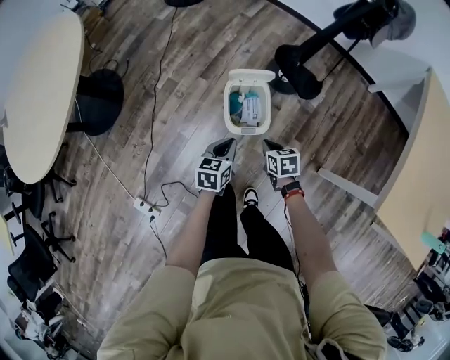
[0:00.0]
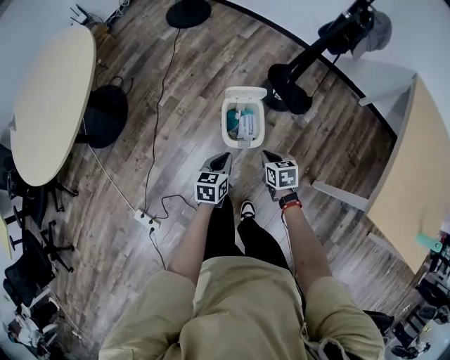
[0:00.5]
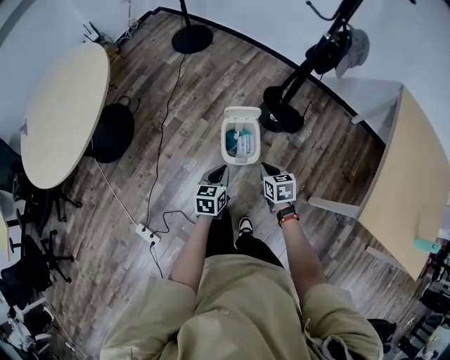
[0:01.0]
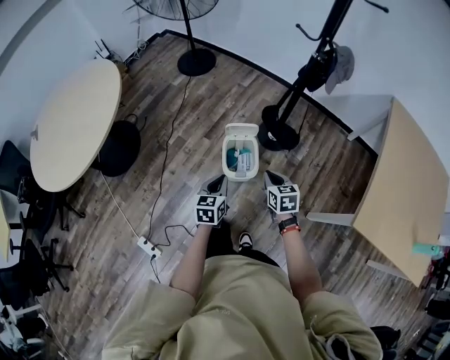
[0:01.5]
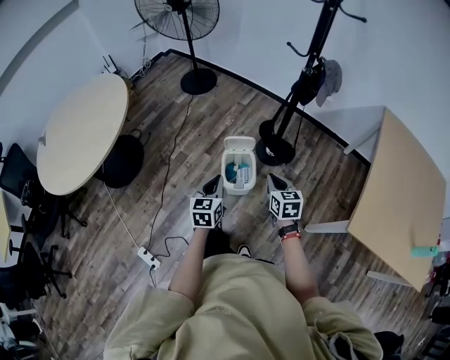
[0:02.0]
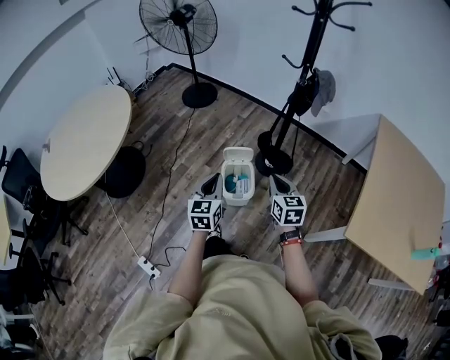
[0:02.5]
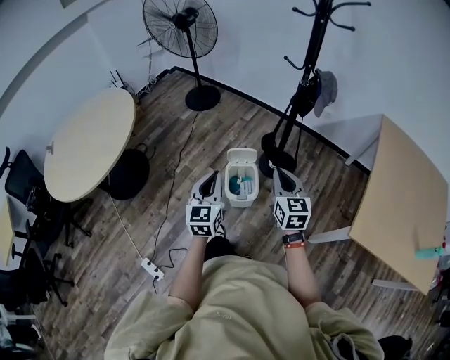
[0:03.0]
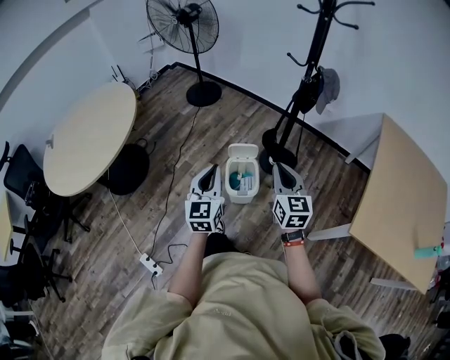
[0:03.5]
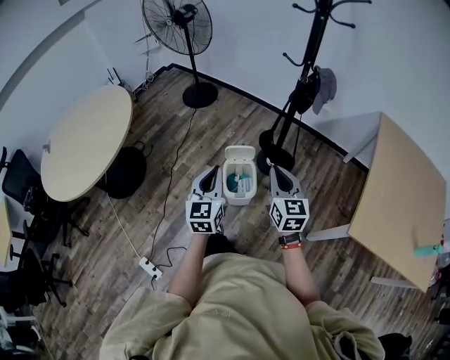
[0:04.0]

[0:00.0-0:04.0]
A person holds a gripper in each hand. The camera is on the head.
0:00.0 to 0:02.0: Both grippers travel together upward, about 30 cm. The right gripper turns by roughly 30 degrees. The left gripper turns by some 20 degrees.
0:02.0 to 0:04.0: The two grippers go approximately 15 cm upward. The right gripper changes its angle by approximately 20 degrees.

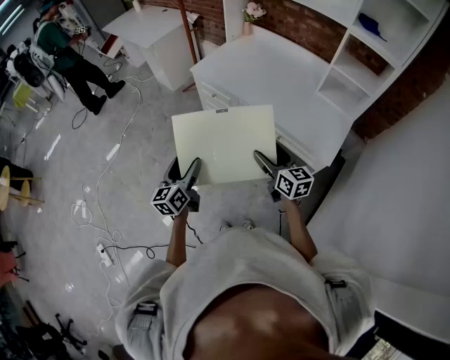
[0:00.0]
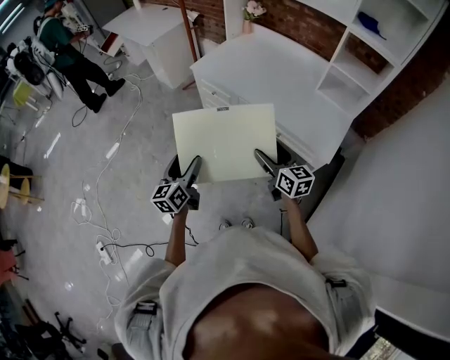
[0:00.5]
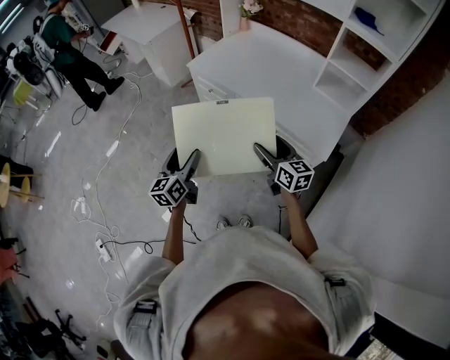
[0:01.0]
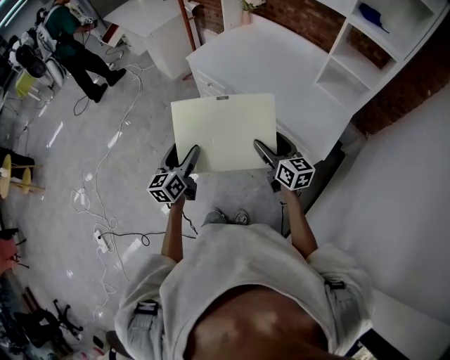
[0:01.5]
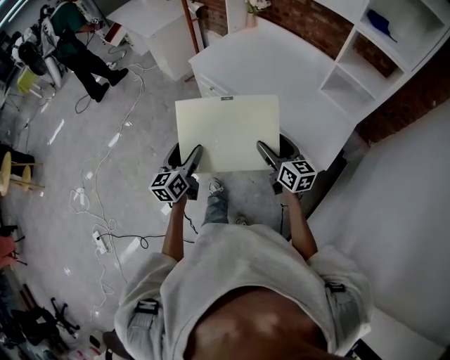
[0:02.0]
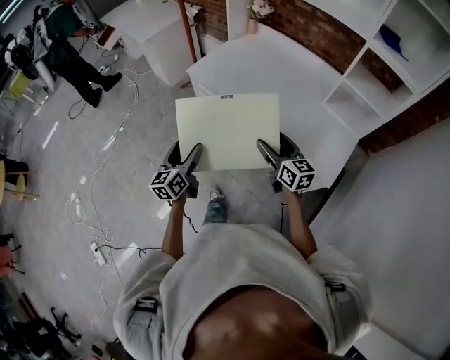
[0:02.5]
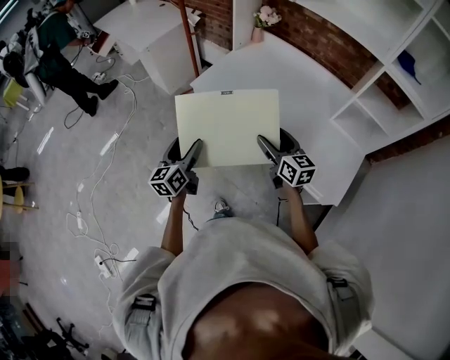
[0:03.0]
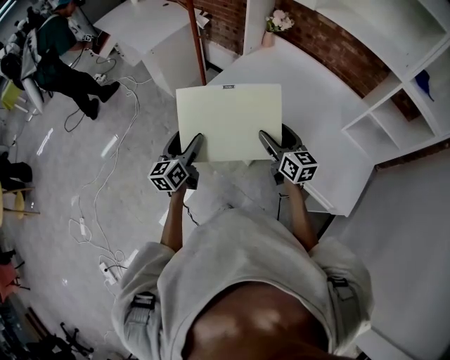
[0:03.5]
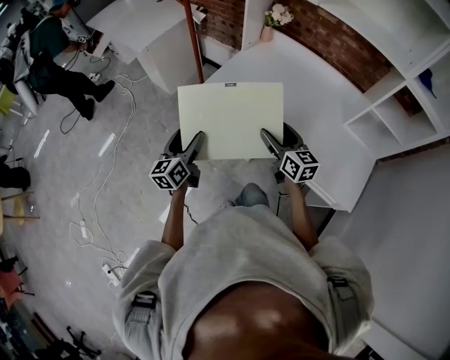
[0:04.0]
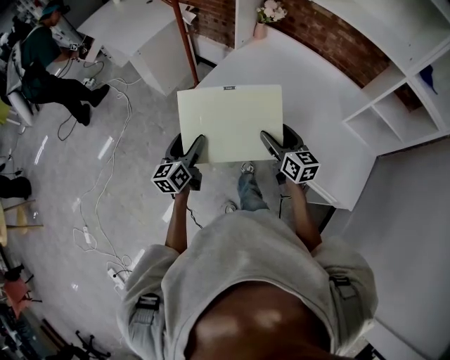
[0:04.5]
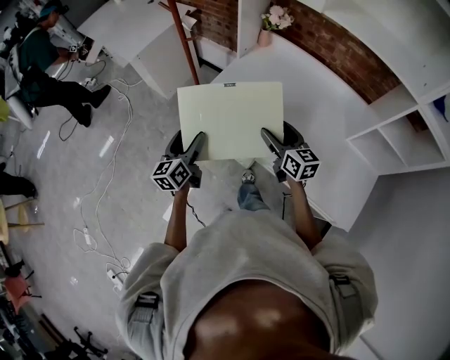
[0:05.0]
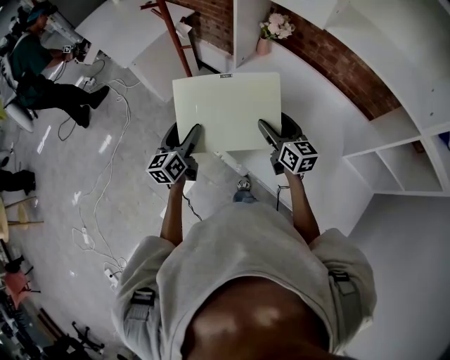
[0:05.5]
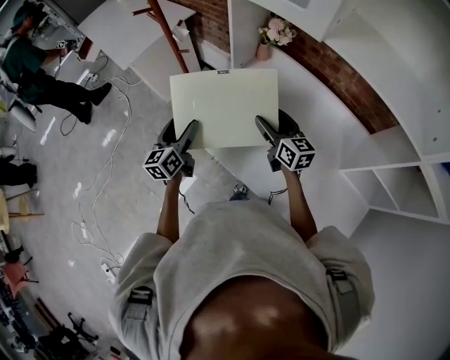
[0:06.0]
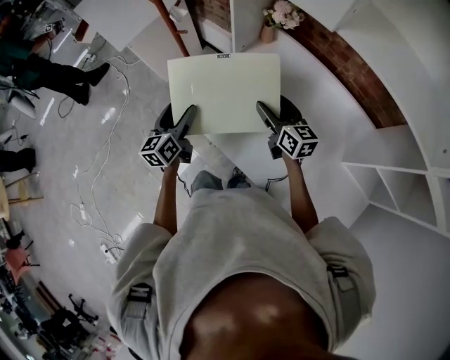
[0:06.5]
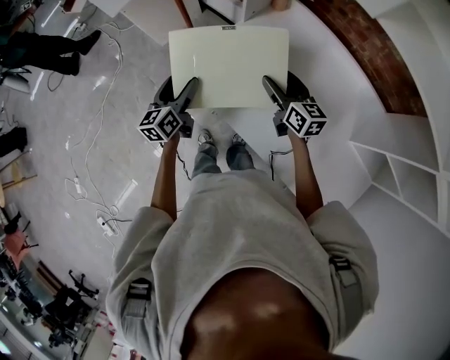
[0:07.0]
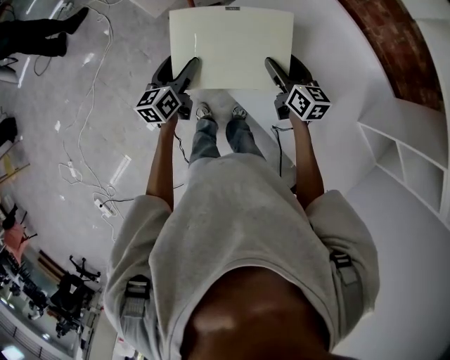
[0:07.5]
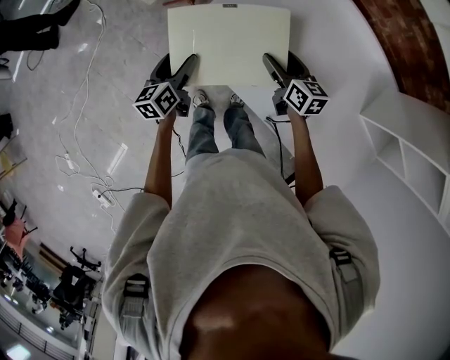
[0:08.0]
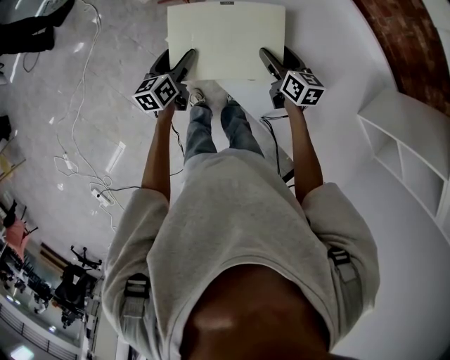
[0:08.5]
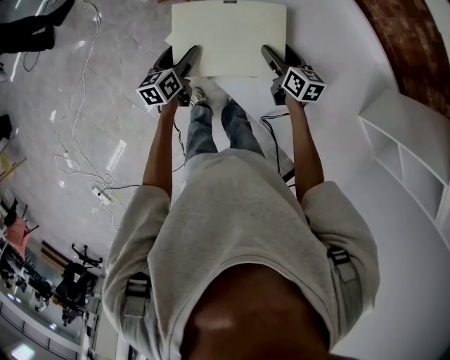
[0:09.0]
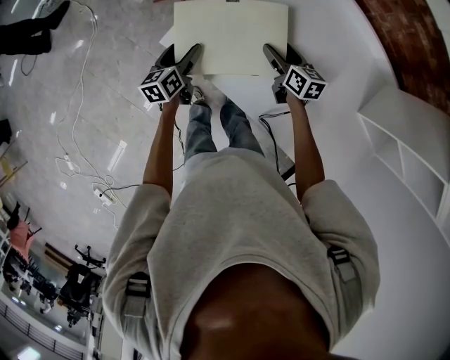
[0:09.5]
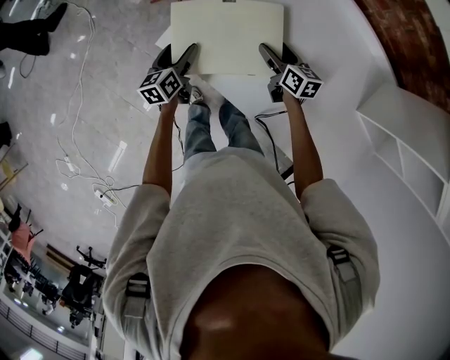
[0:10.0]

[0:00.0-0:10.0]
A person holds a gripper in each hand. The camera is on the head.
0:00.0 to 0:02.0: The grippers both shift to the right by approximately 5 cm.
0:02.0 to 0:04.0: Both grippers travel together forward, roughly 35 cm.
0:04.0 to 0:06.0: The grippers both shift forward by about 30 cm.
0:06.0 to 0:08.0: The grippers both shift downward by about 15 cm.
0:08.0 to 0:10.0: Both grippers move downward, about 5 cm.

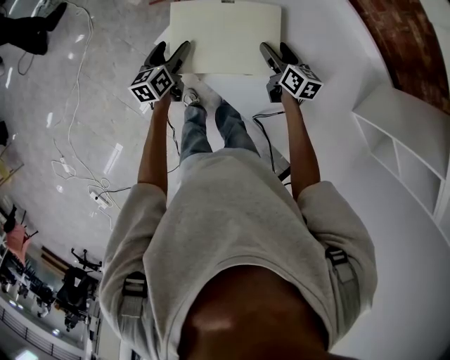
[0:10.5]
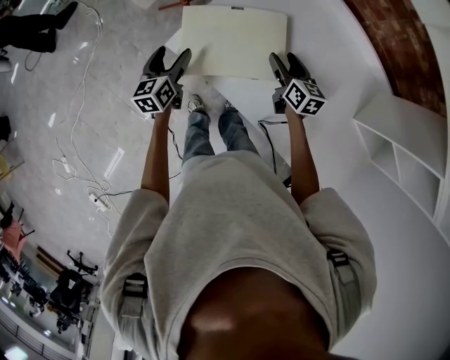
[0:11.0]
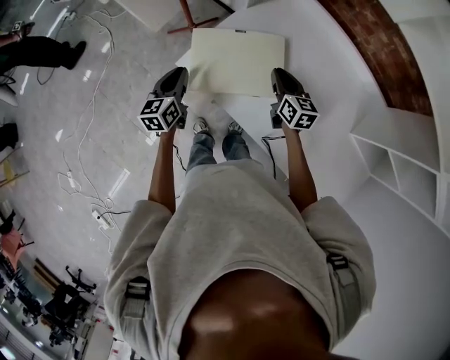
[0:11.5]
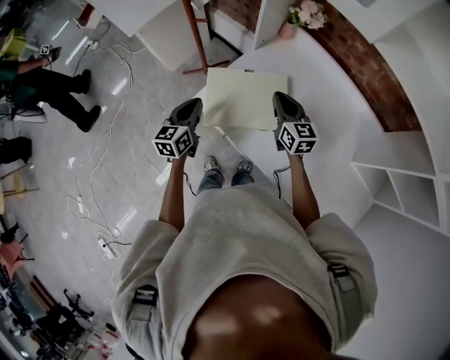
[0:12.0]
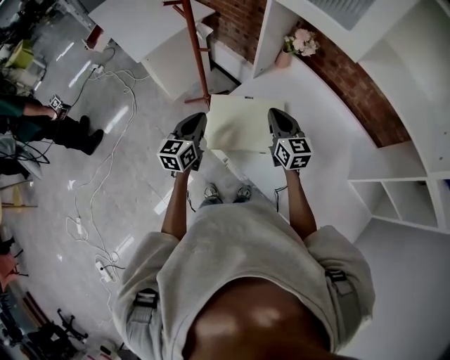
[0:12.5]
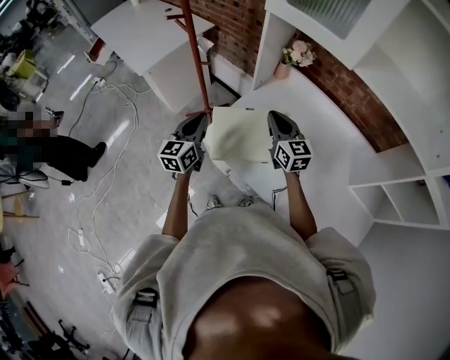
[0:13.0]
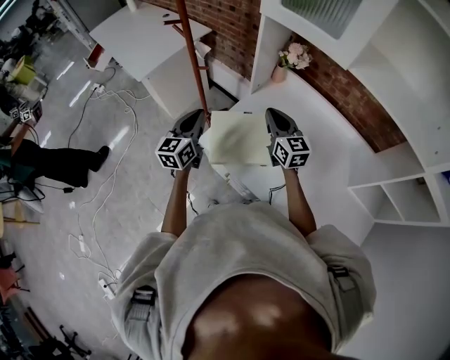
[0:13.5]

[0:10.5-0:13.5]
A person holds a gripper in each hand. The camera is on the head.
0:10.5 to 0:12.0: The two grippers go approximately 15 cm upward. The right gripper changes its angle by roughly 30 degrees, and closes its fingers. The left gripper closes its fingers.
0:12.0 to 0:13.5: Both grippers travel together upward, approximately 10 cm.

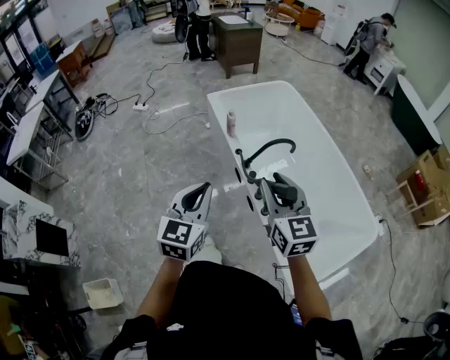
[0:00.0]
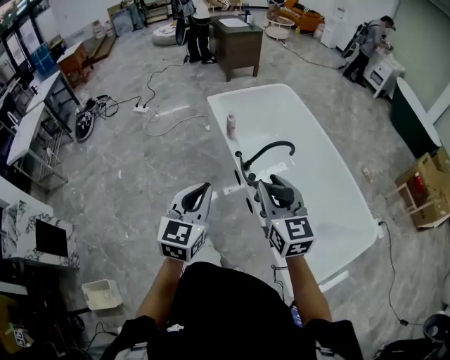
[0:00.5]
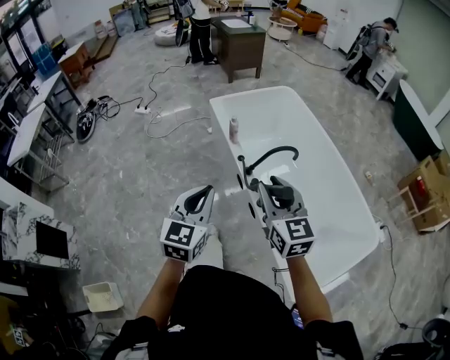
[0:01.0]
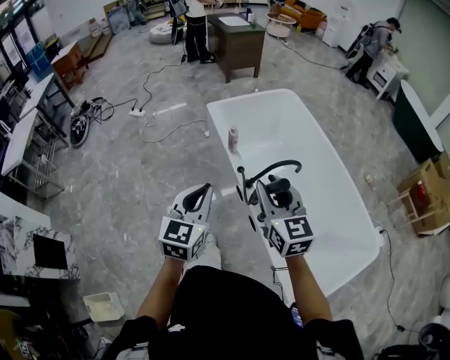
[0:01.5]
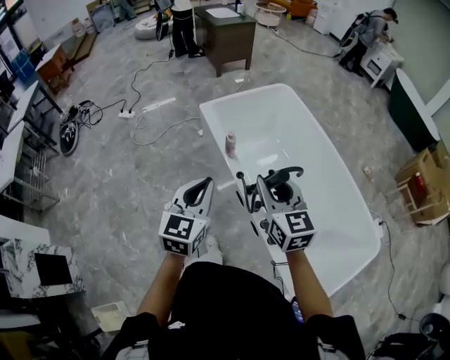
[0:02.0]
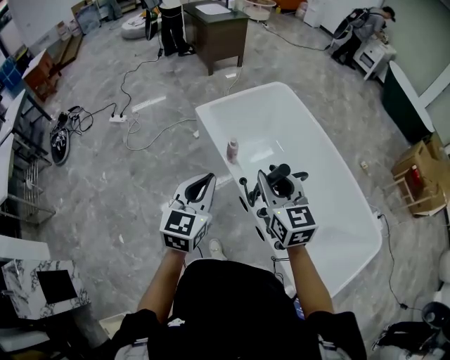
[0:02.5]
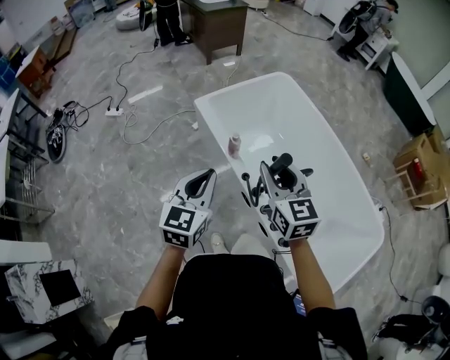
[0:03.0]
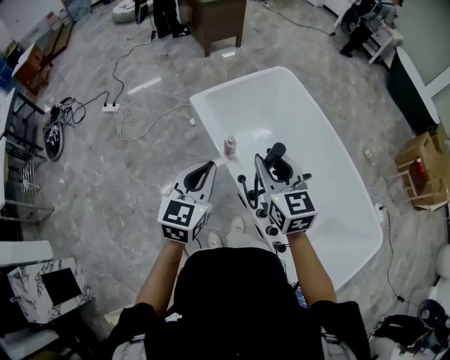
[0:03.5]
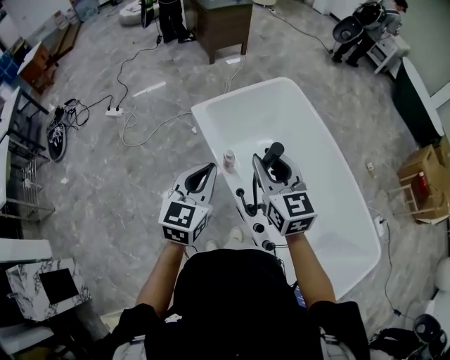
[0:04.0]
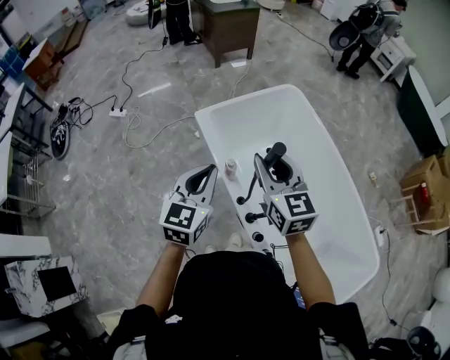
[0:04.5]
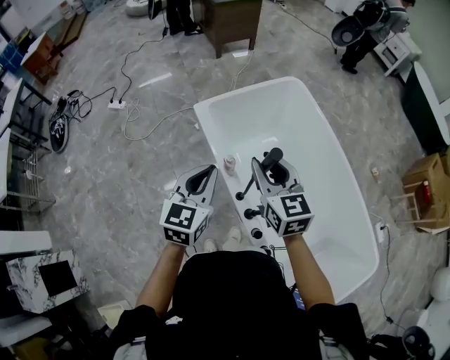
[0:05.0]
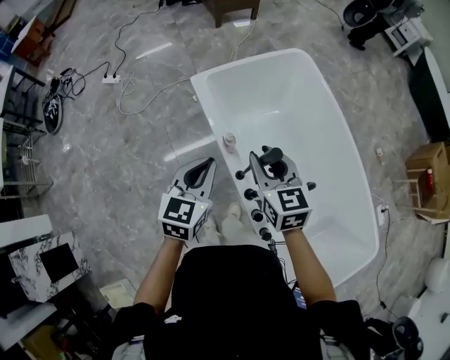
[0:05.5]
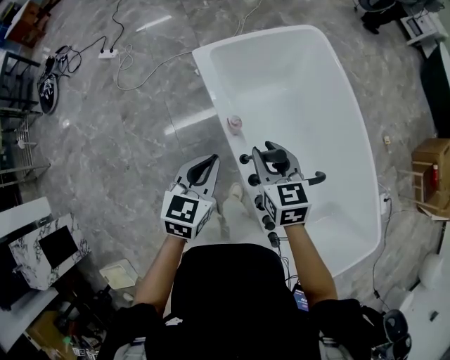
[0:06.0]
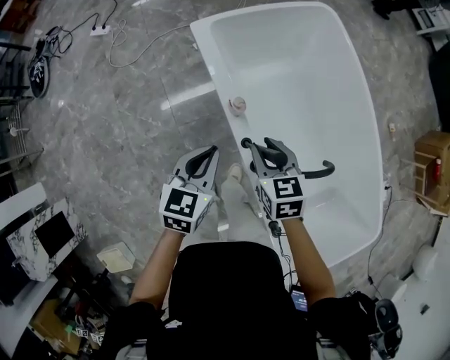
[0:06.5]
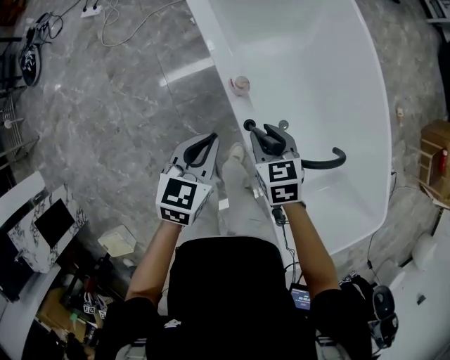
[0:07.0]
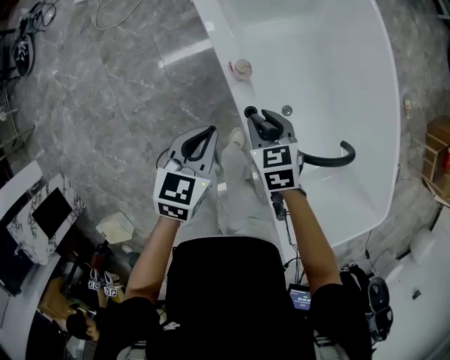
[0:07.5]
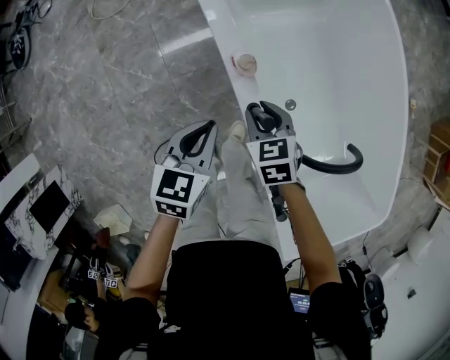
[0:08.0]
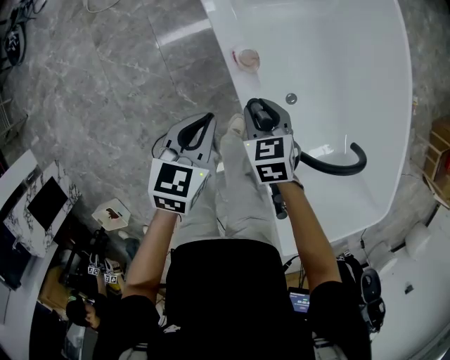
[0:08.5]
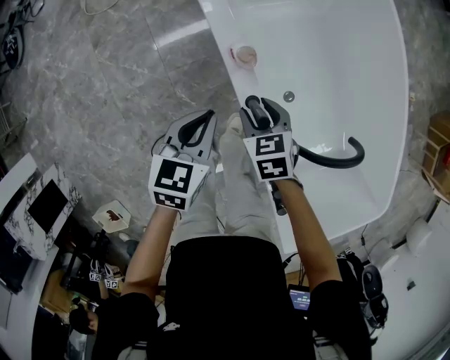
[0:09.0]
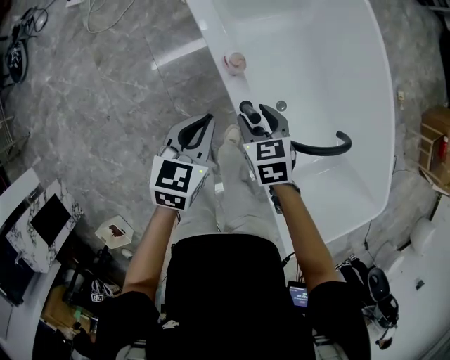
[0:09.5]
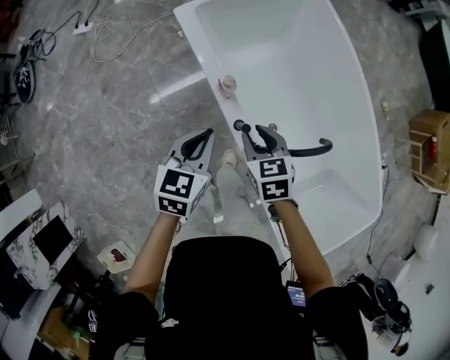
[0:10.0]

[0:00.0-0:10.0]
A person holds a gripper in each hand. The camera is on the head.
0:00.0 to 0:02.0: Both grippers move forward, about 25 cm.
0:02.0 to 0:04.0: The grippers both shift forward by about 25 cm.
0:04.0 to 0:06.0: Both grippers move downward, some 15 cm. The right gripper rotates approximately 20 degrees.
0:06.0 to 0:08.0: Both grippers travel together downward, roughly 25 cm. The right gripper changes its angle by some 20 degrees.
0:08.0 to 0:10.0: Both grippers travel together upward, roughly 15 cm.
